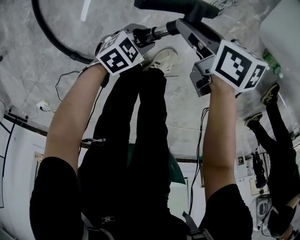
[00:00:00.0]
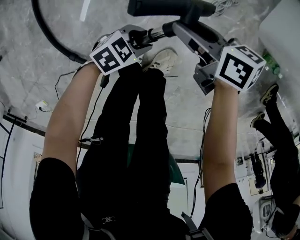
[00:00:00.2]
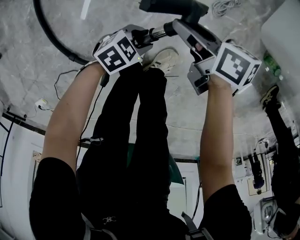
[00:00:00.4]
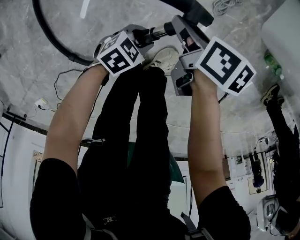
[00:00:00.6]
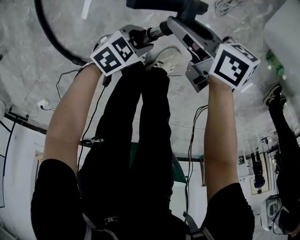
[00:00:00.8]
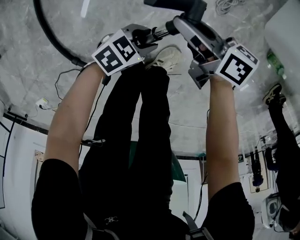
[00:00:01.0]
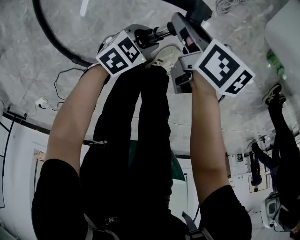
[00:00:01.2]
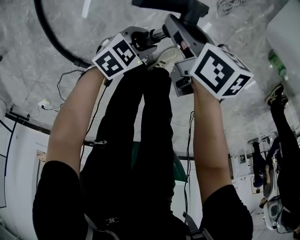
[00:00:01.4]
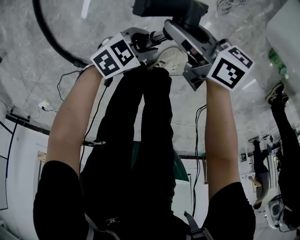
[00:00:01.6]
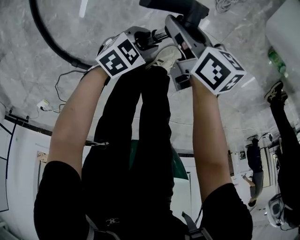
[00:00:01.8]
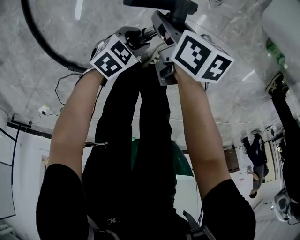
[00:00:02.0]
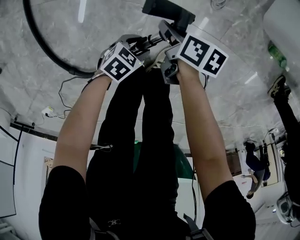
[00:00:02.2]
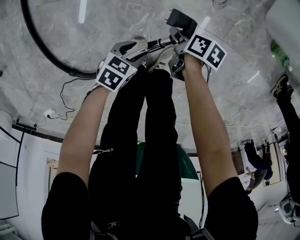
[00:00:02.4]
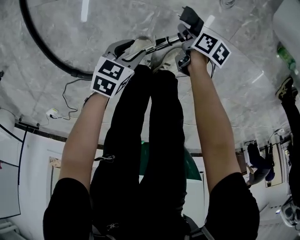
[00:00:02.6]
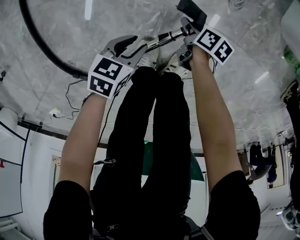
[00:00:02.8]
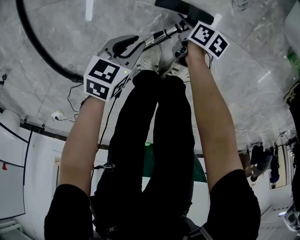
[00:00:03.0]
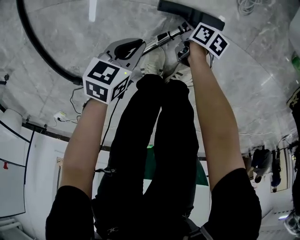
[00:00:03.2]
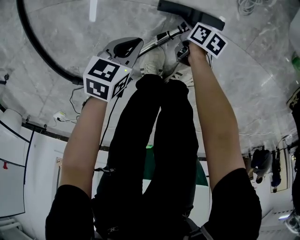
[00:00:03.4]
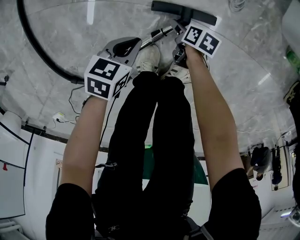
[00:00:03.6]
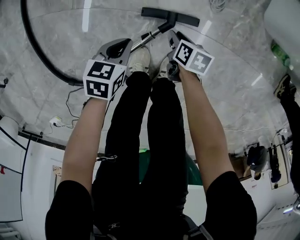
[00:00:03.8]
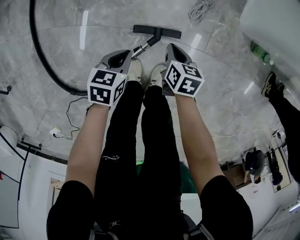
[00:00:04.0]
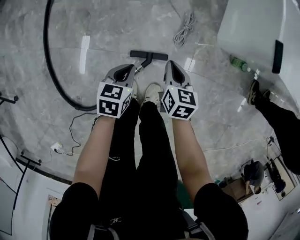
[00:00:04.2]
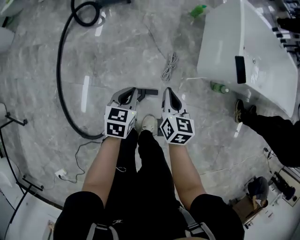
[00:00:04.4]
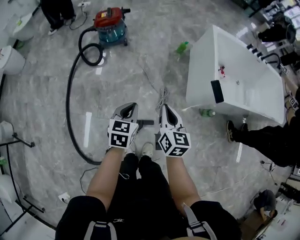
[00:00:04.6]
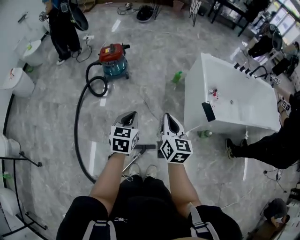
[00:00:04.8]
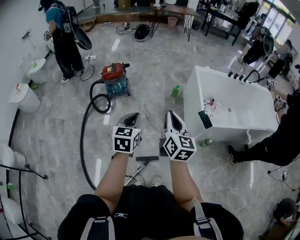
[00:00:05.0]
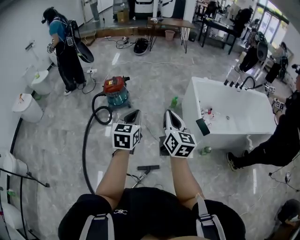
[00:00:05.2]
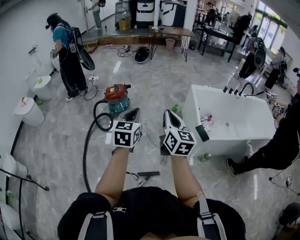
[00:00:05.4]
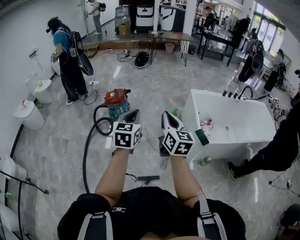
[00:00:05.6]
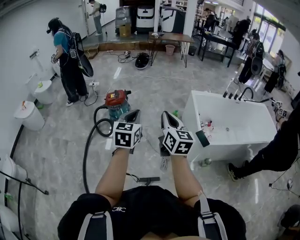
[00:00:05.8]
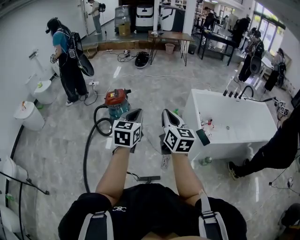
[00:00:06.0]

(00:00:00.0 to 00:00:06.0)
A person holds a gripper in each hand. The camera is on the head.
00:00:00.0 - 00:00:01.6: The right gripper turns by approximately 20 degrees.
00:00:01.6 - 00:00:03.0: The left gripper moves roughly 10 cm, and changes its angle by some 30 degrees; the right gripper shifts about 30 cm downward, and tilts its fingers about 30 degrees downward.
00:00:03.0 - 00:00:04.4: Both grippers move upward, some 60 cm. The right gripper rotates approximately 50 degrees, and closes its fingers; the left gripper changes its angle by about 30 degrees.
00:00:04.4 - 00:00:06.0: Both grippers move upward, approximately 50 cm. The right gripper points its fingers about 30 degrees further upward. Meanwhile the left gripper turns by roughly 30 degrees.

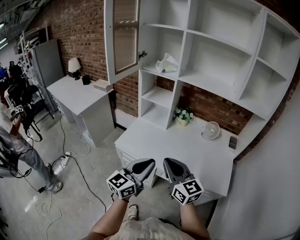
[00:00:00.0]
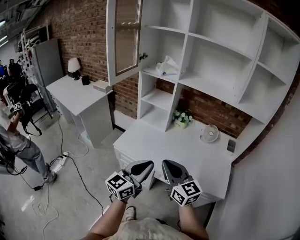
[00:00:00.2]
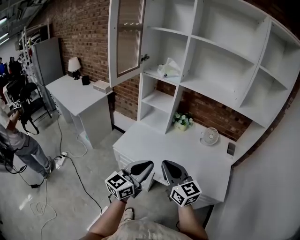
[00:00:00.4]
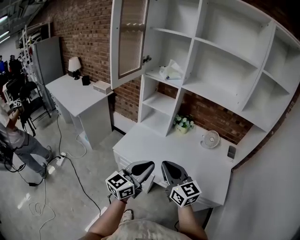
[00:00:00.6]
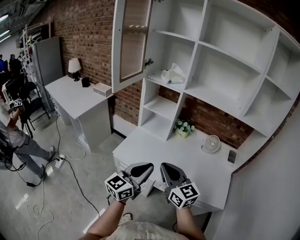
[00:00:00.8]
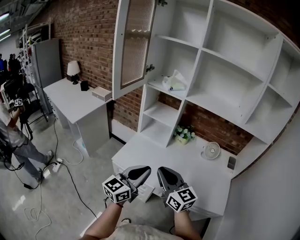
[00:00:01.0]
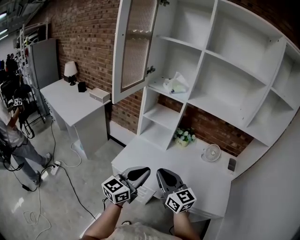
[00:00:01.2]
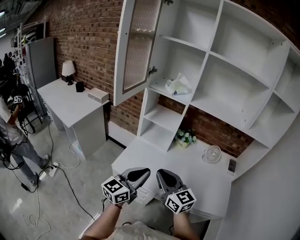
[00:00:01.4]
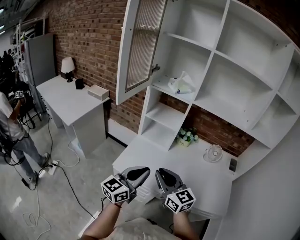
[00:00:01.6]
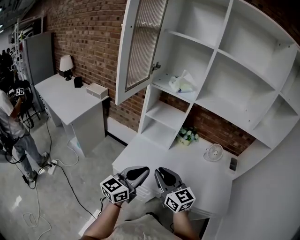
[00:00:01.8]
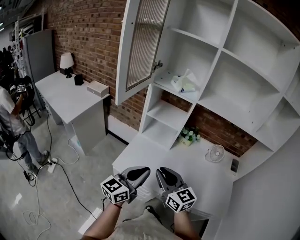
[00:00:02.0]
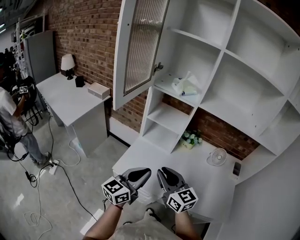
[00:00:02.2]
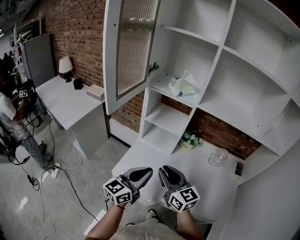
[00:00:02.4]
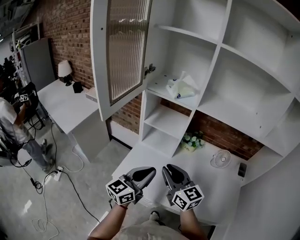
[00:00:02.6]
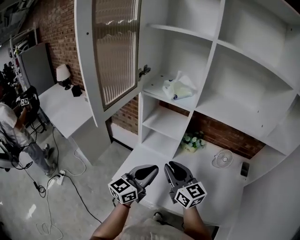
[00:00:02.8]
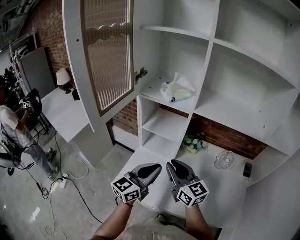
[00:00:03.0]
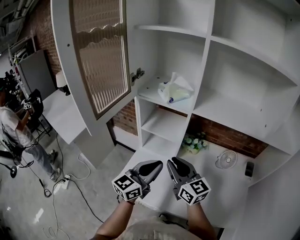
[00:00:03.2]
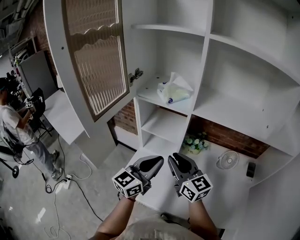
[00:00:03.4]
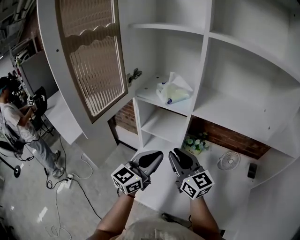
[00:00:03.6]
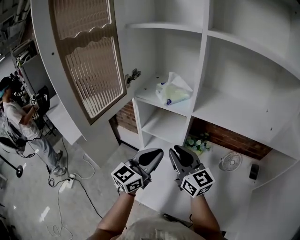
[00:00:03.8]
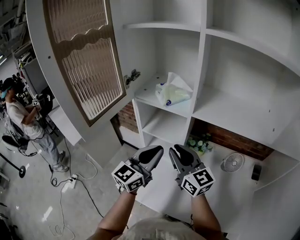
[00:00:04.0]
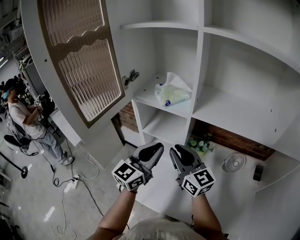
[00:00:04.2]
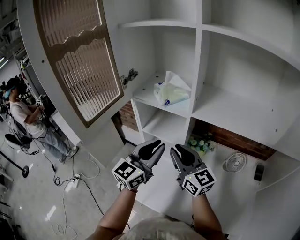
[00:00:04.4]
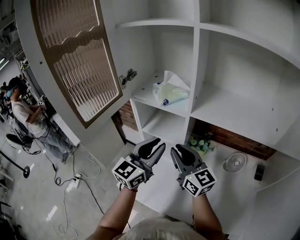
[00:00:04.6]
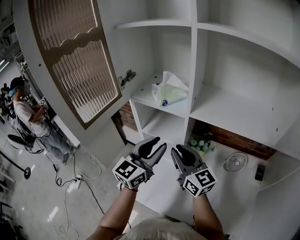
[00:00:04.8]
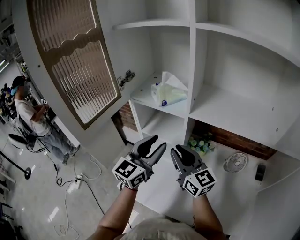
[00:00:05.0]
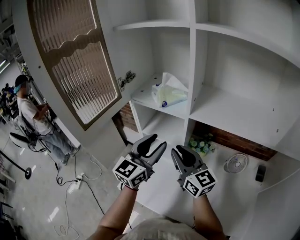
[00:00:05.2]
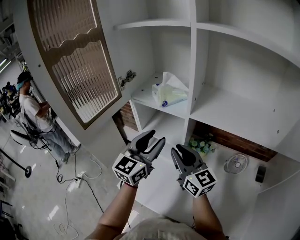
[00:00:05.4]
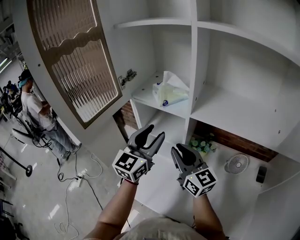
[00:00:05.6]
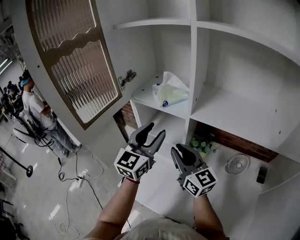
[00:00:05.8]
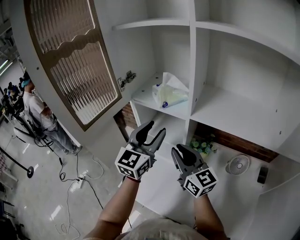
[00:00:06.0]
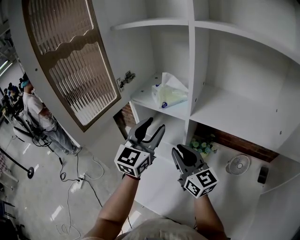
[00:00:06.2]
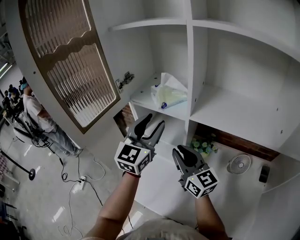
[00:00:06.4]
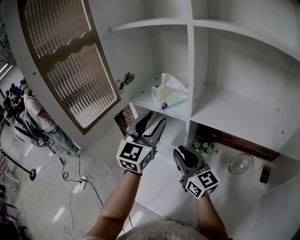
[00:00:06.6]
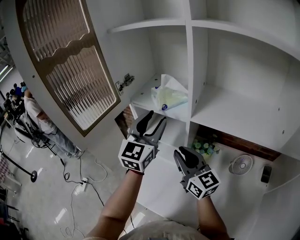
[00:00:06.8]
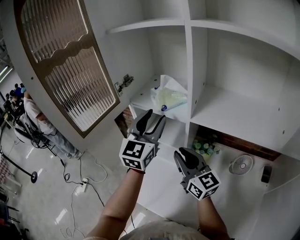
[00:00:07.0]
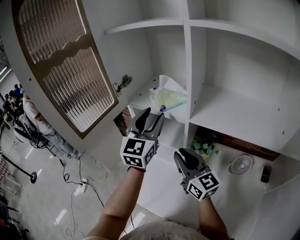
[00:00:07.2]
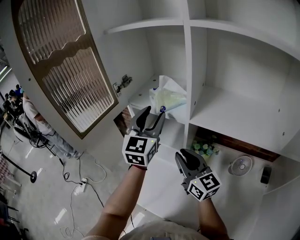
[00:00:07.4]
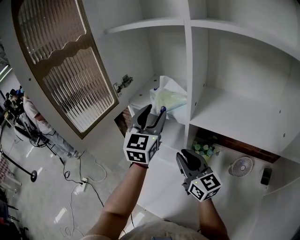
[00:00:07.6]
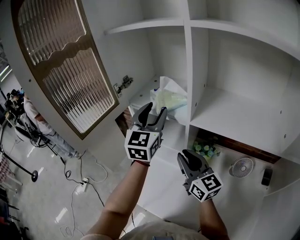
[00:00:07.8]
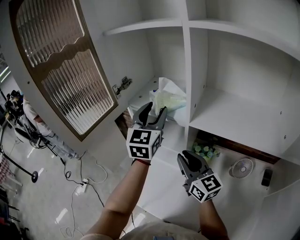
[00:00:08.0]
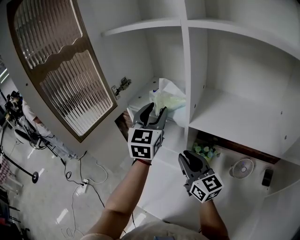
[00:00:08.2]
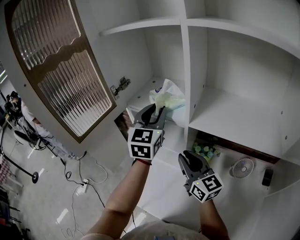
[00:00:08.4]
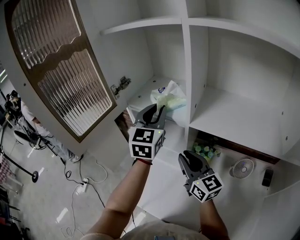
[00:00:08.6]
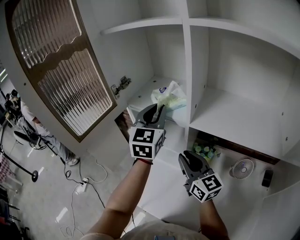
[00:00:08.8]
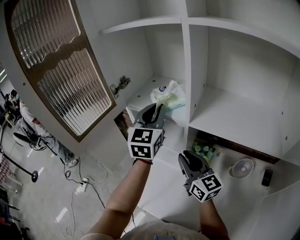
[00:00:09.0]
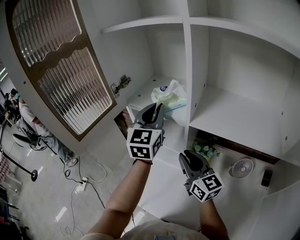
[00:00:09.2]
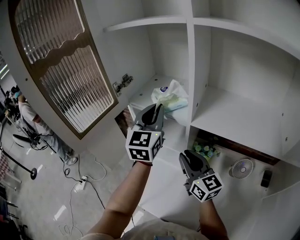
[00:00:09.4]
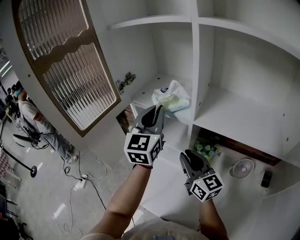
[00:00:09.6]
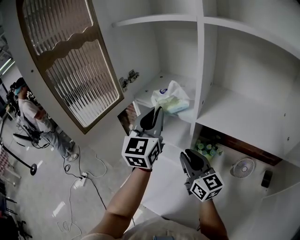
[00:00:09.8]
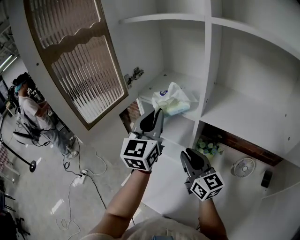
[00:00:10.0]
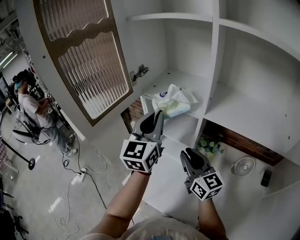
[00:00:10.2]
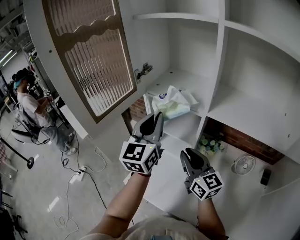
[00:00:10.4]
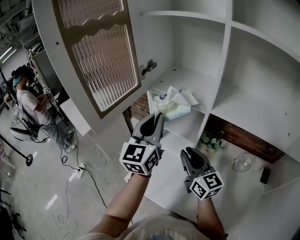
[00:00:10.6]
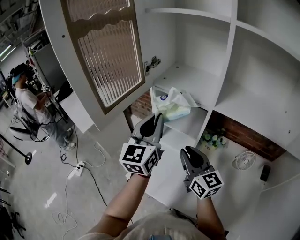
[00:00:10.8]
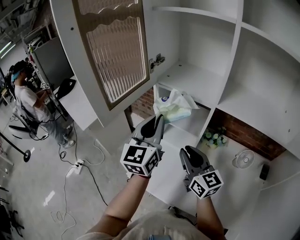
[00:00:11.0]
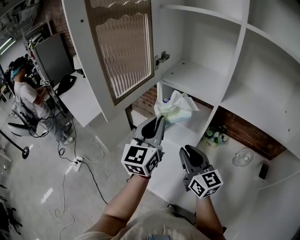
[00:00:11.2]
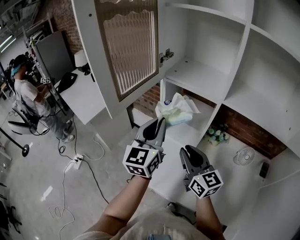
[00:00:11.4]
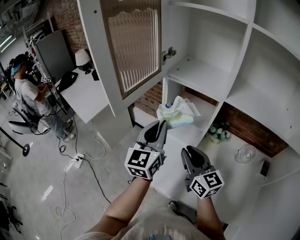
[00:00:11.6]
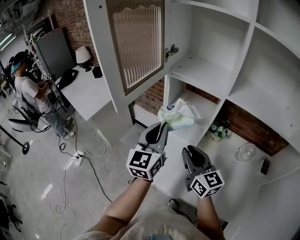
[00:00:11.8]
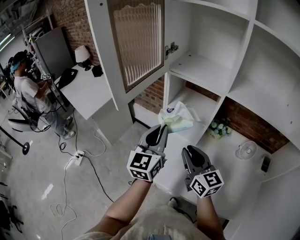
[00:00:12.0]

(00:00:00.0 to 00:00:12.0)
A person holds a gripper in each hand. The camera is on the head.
00:00:00.0 - 00:00:01.6: The right gripper goes about 15 cm to the left and forward, while the left gripper travels forward and to the left by roughly 15 cm.
00:00:01.6 - 00:00:03.0: Both grippers travel together forward, approximately 15 cm.
00:00:03.0 - 00:00:04.4: The left gripper goes some 15 cm forward and upward, while the right gripper is displaced forward by roughly 10 cm.
00:00:04.4 - 00:00:06.0: The left gripper travels forward by roughly 5 cm, and opens up.
00:00:06.0 - 00:00:07.6: The left gripper travels forward by approximately 5 cm.
00:00:07.6 - 00:00:09.0: The left gripper closes.
00:00:09.0 - 00:00:10.4: The right gripper shifts some 5 cm to the left, while the left gripper goes some 10 cm backward and to the left.
00:00:10.4 - 00:00:12.0: The left gripper moves downward, backward and to the left, some 15 cm. Meanwhile the right gripper heads to the left and backward, covering some 10 cm.

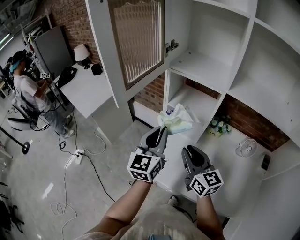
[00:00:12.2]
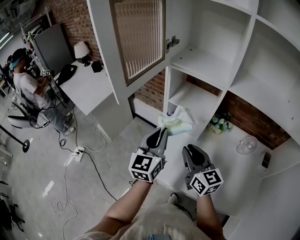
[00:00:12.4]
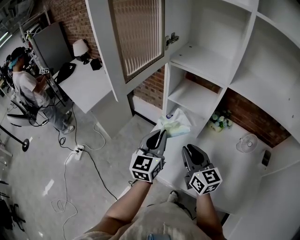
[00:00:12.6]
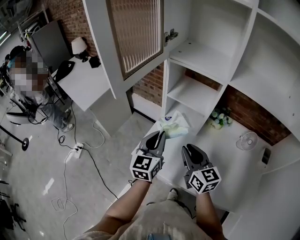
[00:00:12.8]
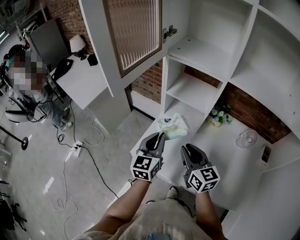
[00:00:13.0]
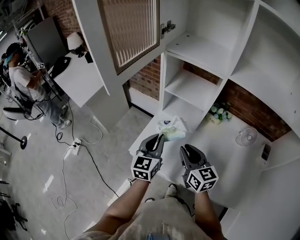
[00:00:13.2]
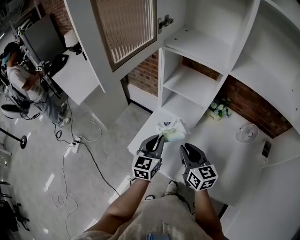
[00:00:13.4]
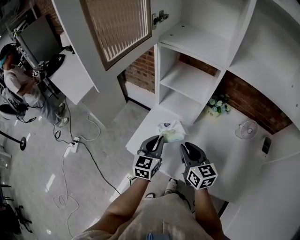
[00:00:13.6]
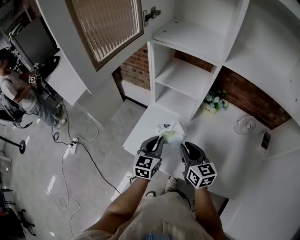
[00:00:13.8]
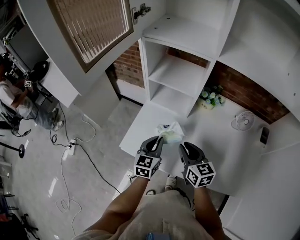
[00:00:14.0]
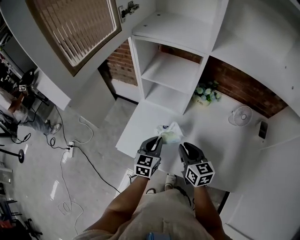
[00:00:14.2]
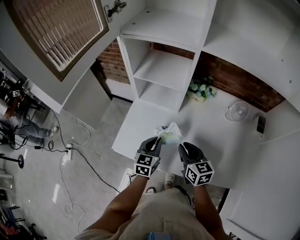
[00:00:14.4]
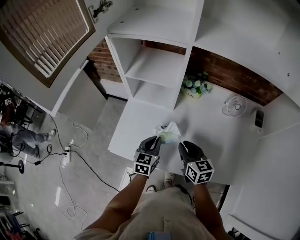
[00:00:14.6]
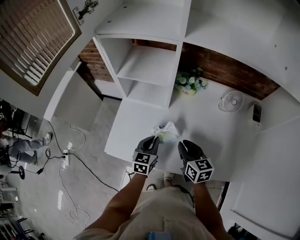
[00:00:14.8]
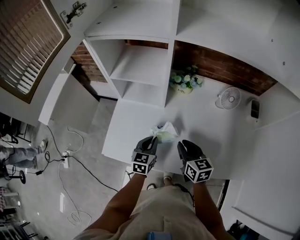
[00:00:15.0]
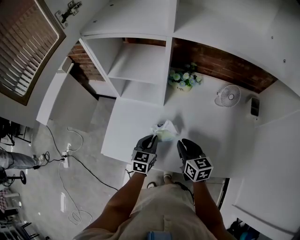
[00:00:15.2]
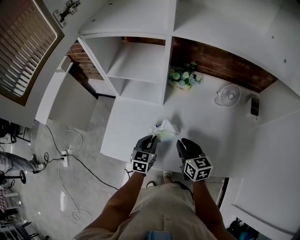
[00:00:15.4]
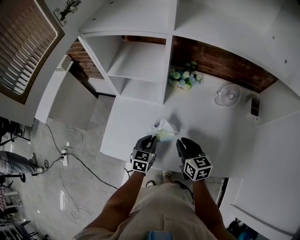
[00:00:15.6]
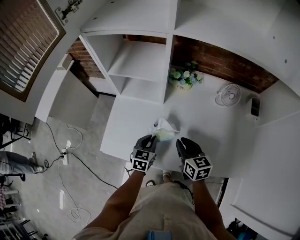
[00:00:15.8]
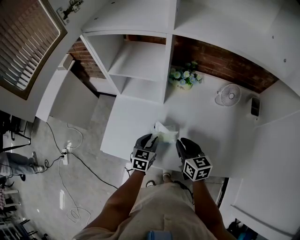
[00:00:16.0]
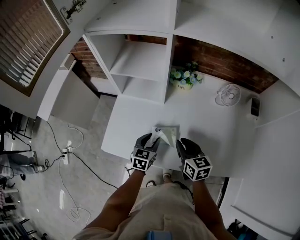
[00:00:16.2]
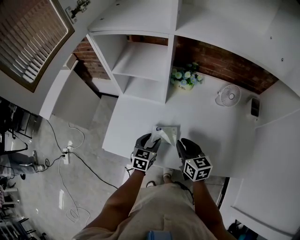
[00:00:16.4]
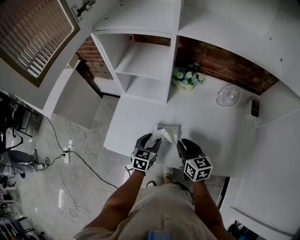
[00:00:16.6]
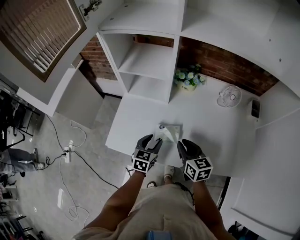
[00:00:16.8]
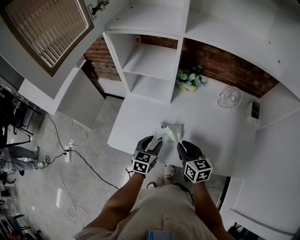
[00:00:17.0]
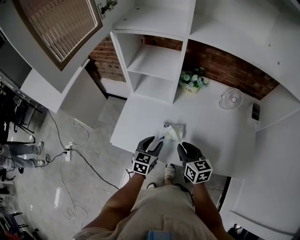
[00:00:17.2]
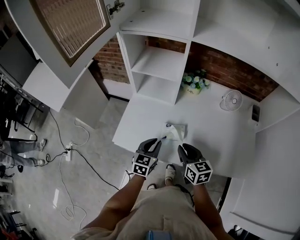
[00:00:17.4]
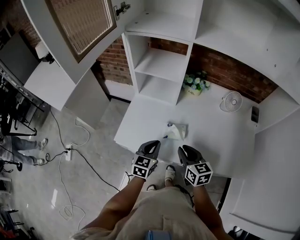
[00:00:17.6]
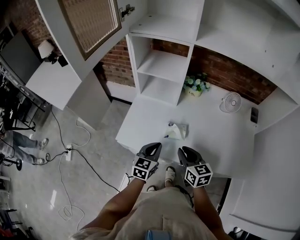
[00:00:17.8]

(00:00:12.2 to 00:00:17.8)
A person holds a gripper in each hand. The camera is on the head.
00:00:12.2 - 00:00:13.6: The left gripper is displaced downward by roughly 20 cm; the right gripper shifts approximately 10 cm downward.
00:00:13.6 - 00:00:15.0: The left gripper travels downward and to the right by some 20 cm, and changes its angle by about 20 degrees, while the right gripper shifts some 15 cm to the right and downward, and swivels roughly 20 degrees.
00:00:15.0 - 00:00:16.4: The left gripper opens up.
00:00:16.4 - 00:00:17.8: The right gripper shifts some 10 cm backward and to the left. The left gripper travels backward and upward by roughly 15 cm, and closes its fingers.
